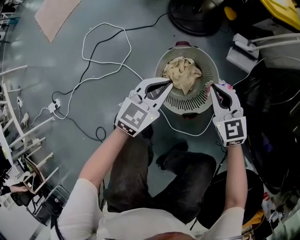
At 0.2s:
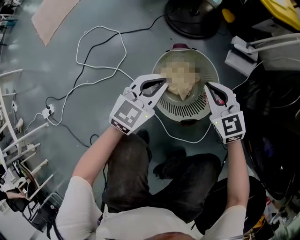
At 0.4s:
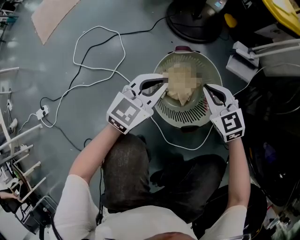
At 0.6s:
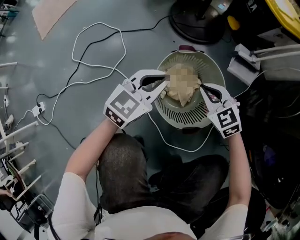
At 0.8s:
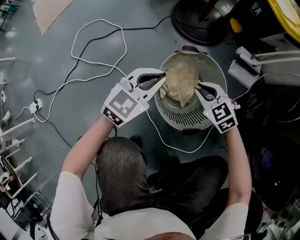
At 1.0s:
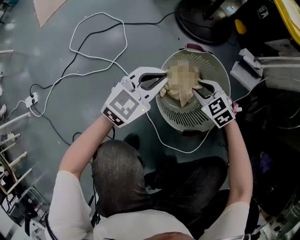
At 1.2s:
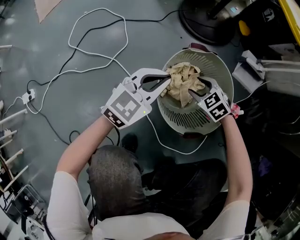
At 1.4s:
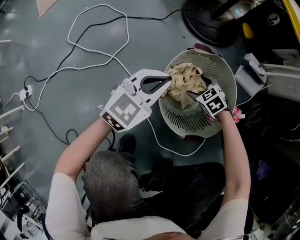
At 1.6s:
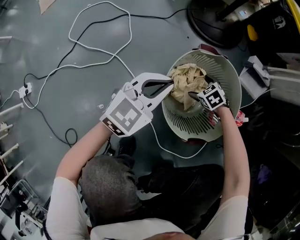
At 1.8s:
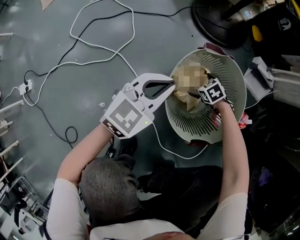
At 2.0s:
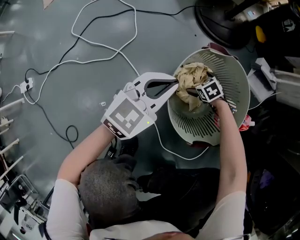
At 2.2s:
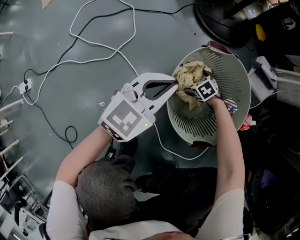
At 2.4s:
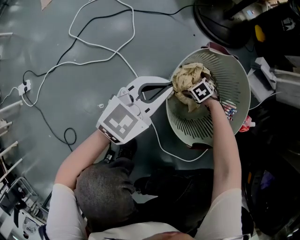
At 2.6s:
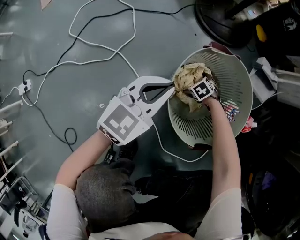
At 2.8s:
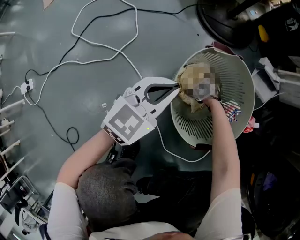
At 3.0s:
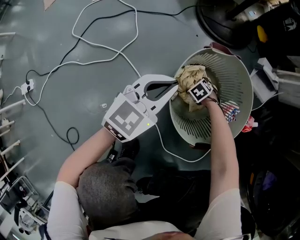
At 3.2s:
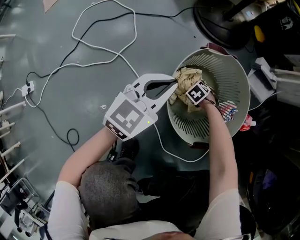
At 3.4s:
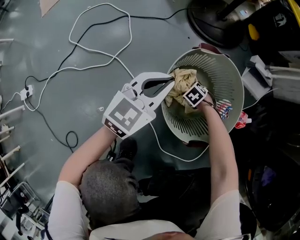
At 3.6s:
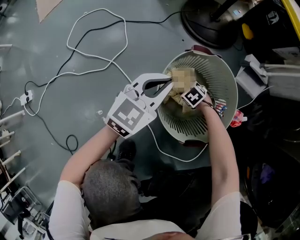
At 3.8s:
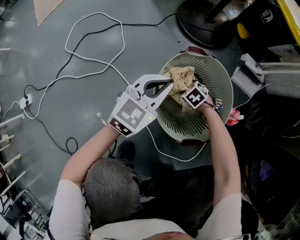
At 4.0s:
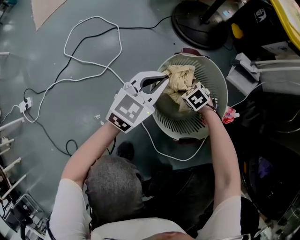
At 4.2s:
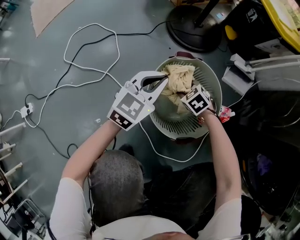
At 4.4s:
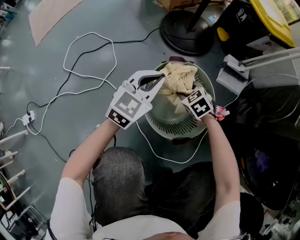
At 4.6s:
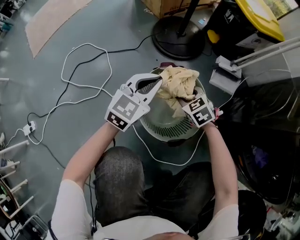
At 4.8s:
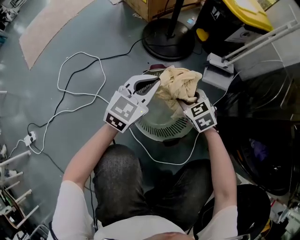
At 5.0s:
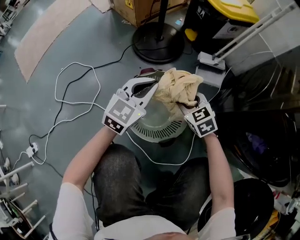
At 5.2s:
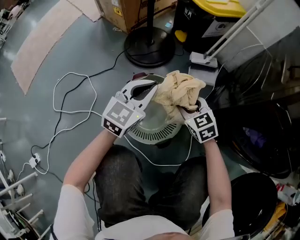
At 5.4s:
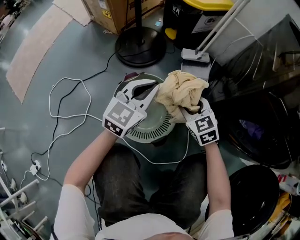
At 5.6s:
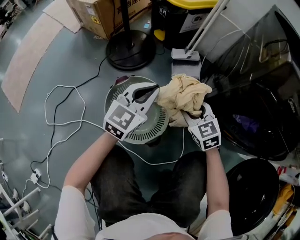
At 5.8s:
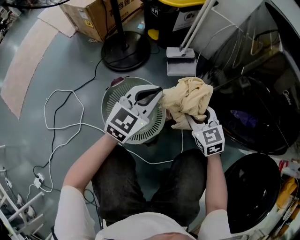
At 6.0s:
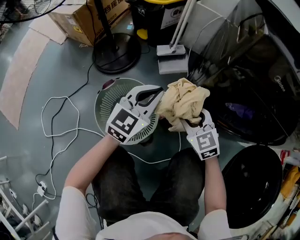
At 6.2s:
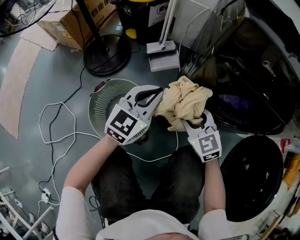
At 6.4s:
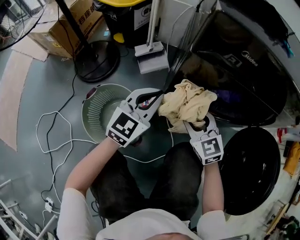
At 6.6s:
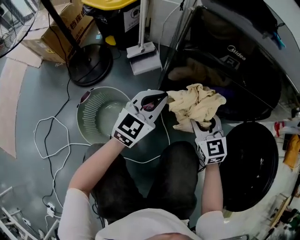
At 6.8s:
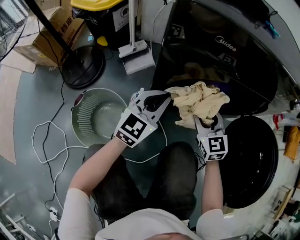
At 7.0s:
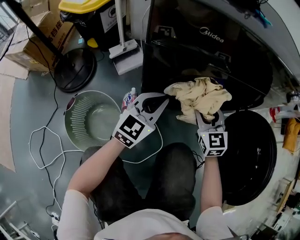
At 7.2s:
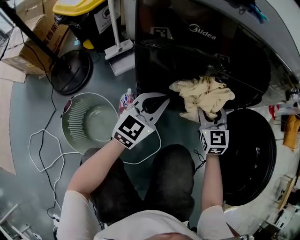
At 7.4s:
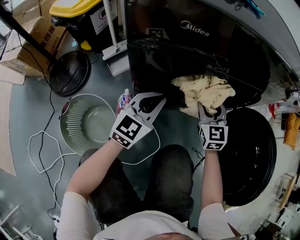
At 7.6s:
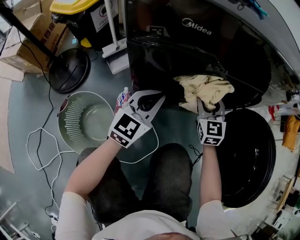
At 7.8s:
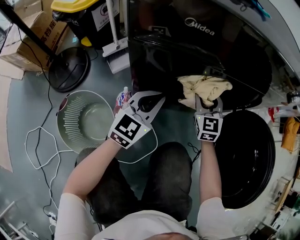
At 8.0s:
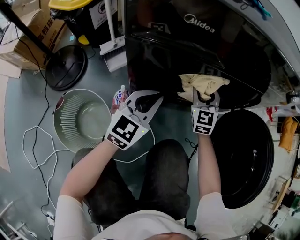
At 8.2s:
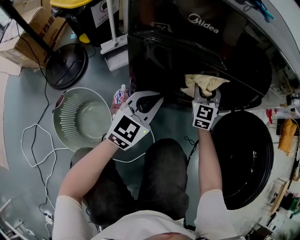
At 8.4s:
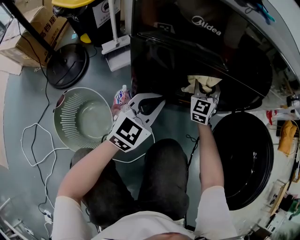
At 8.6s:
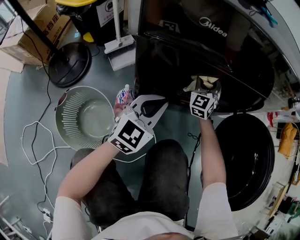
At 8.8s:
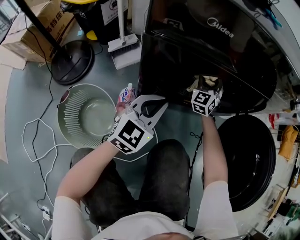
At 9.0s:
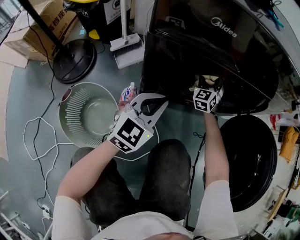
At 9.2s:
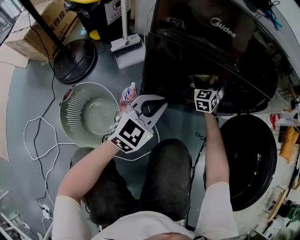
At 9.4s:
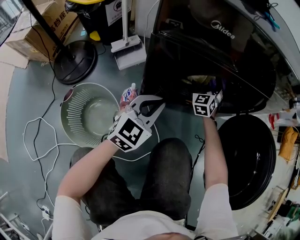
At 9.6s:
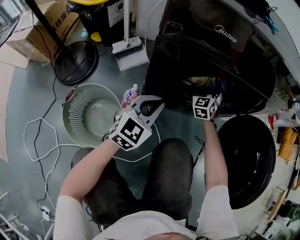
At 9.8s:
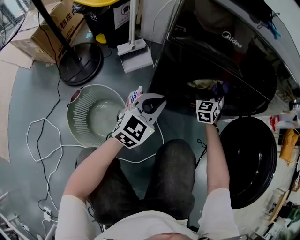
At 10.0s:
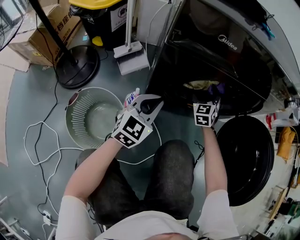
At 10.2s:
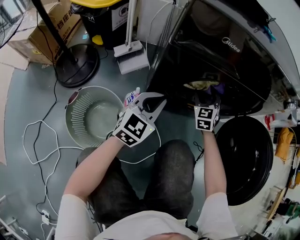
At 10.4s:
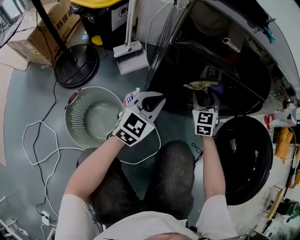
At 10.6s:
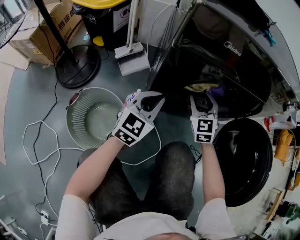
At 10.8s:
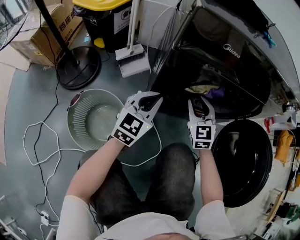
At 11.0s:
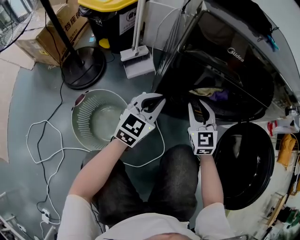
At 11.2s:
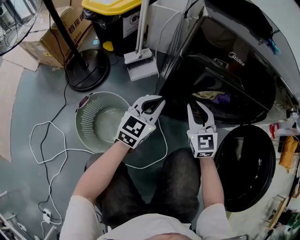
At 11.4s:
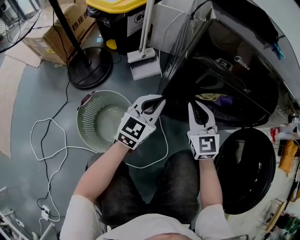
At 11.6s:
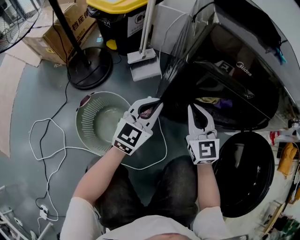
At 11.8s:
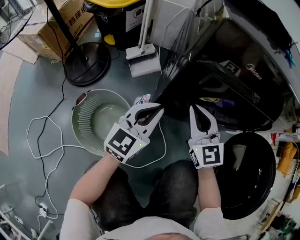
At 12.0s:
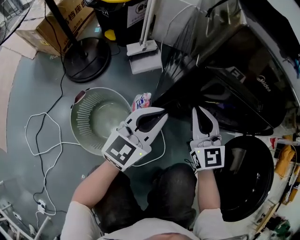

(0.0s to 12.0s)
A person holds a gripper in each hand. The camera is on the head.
0.0s - 1.6s: The left gripper goes roughly 15 cm downward and to the left, while the right gripper goes some 40 cm downward, angles its fingers downward, by some 40 degrees, and opens.
1.6s - 3.0s: The right gripper heads downward, covering about 10 cm.
3.0s - 4.4s: The right gripper travels upward by approximately 25 cm, and swivels roughly 20 degrees, while the left gripper moves upward, roughly 10 cm.
4.4s - 6.0s: The left gripper moves some 30 cm, and rotates about 30 degrees; the right gripper shifts by some 35 cm, and turns by approximately 50 degrees.
6.0s - 7.6s: The right gripper changes place by roughly 30 cm, and rotates roughly 40 degrees. The left gripper shifts by some 25 cm, and changes its angle by some 20 degrees.
7.6s - 9.0s: The right gripper moves forward and downward, some 15 cm, and changes its angle by roughly 20 degrees.
9.0s - 10.4s: The right gripper moves backward and upward, roughly 15 cm, and opens, then closes once more.
10.4s - 12.0s: The left gripper changes place by some 5 cm; the right gripper goes some 15 cm to the left, upward and backward, rotates about 30 degrees, and closes up.

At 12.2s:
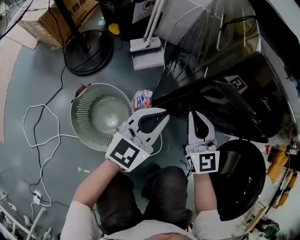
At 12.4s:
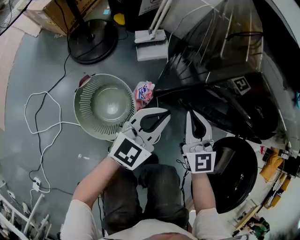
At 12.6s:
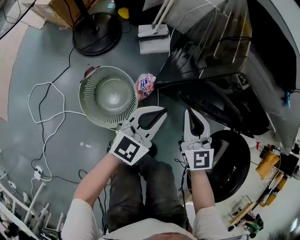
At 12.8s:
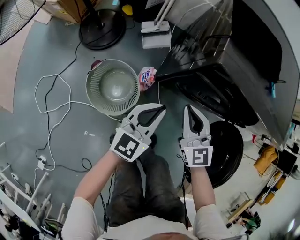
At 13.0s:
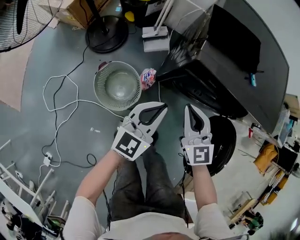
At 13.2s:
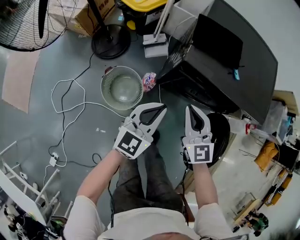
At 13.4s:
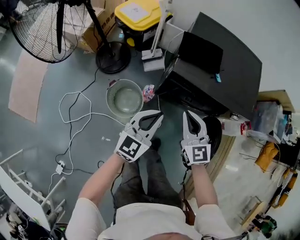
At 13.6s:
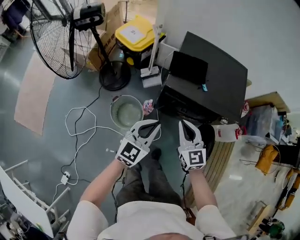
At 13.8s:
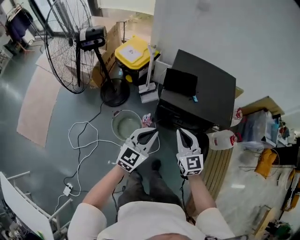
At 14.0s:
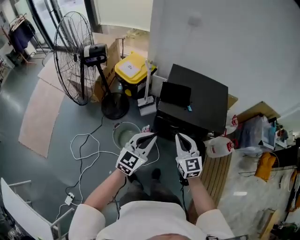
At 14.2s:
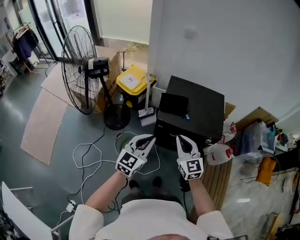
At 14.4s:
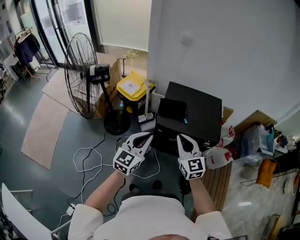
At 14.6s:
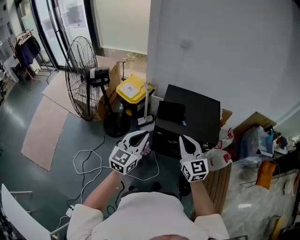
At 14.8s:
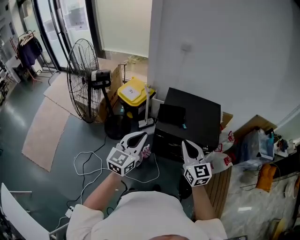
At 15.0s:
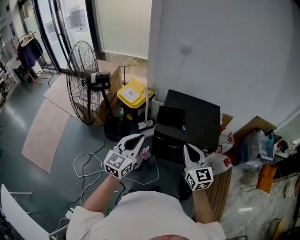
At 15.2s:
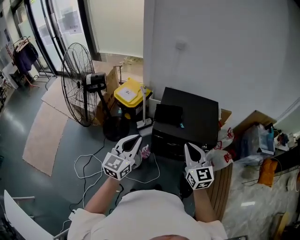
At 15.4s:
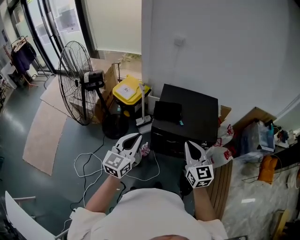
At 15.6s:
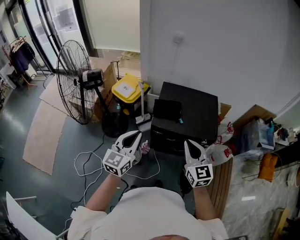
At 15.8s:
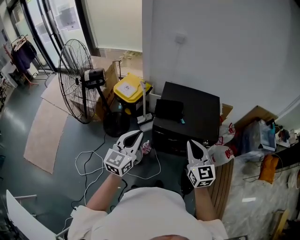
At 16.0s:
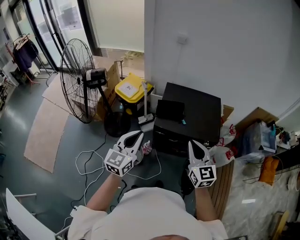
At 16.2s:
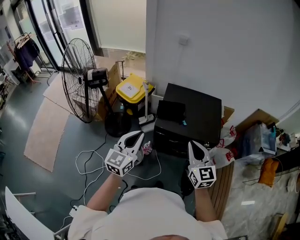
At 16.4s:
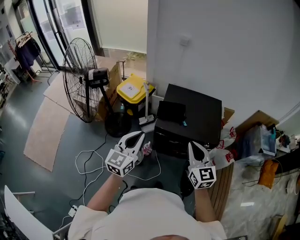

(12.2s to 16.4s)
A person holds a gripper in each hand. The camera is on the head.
12.2s - 13.6s: Both grippers move upward, approximately 50 cm.
13.6s - 15.0s: The two grippers go some 25 cm upward.
15.0s - 16.4s: The grippers stay close to where they were, moving slightly.

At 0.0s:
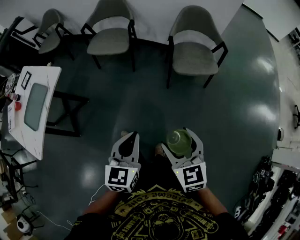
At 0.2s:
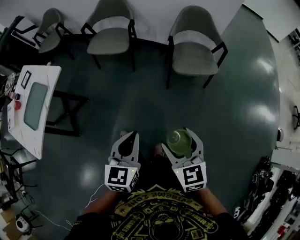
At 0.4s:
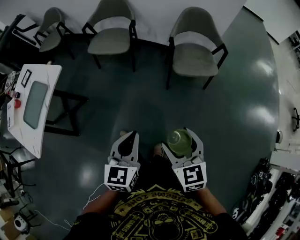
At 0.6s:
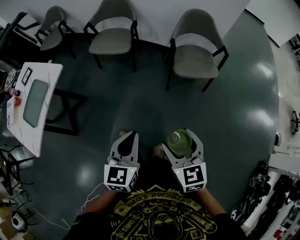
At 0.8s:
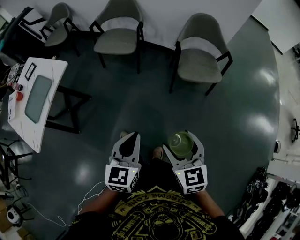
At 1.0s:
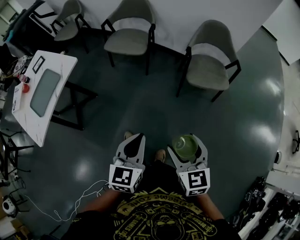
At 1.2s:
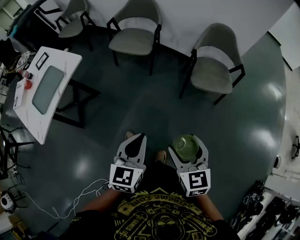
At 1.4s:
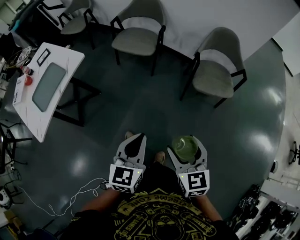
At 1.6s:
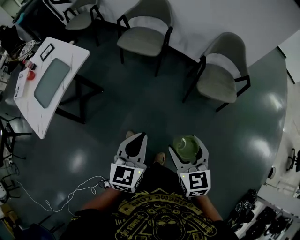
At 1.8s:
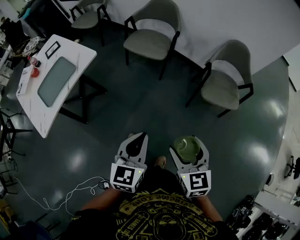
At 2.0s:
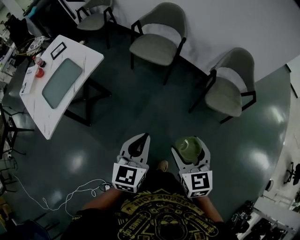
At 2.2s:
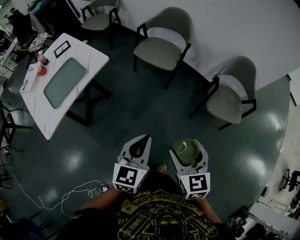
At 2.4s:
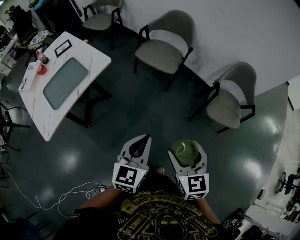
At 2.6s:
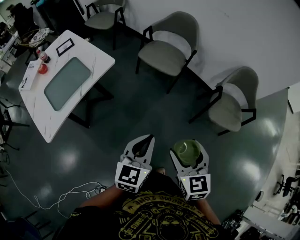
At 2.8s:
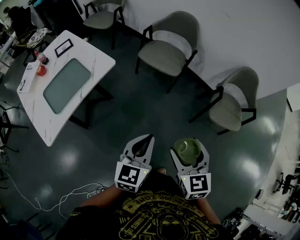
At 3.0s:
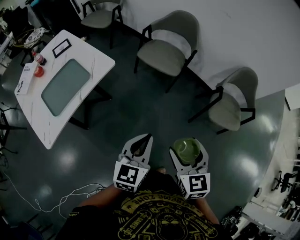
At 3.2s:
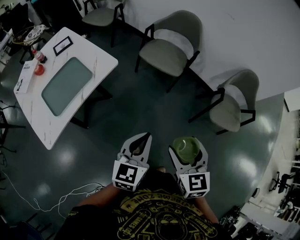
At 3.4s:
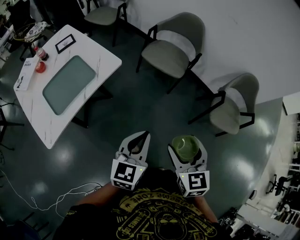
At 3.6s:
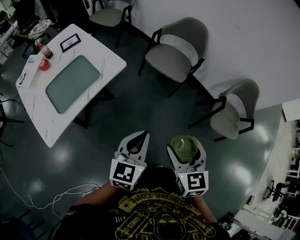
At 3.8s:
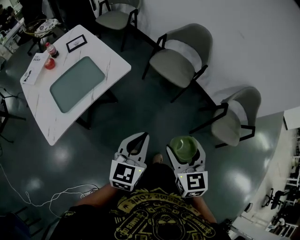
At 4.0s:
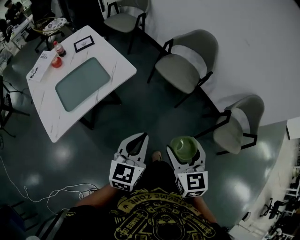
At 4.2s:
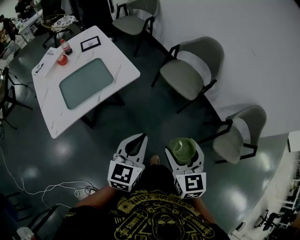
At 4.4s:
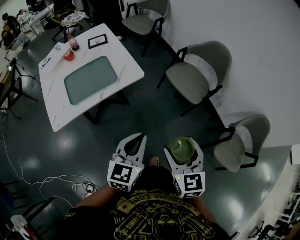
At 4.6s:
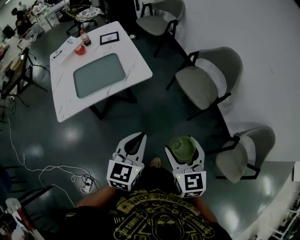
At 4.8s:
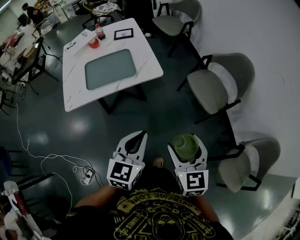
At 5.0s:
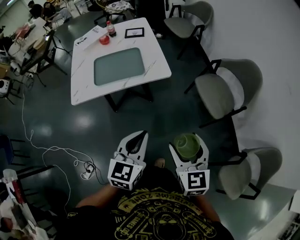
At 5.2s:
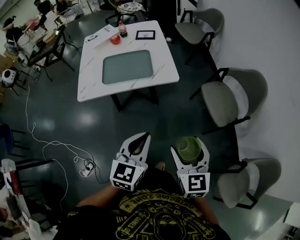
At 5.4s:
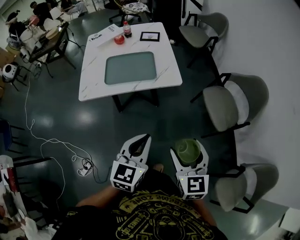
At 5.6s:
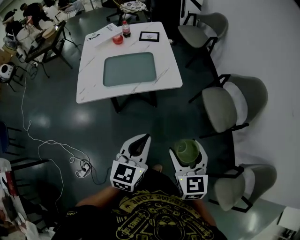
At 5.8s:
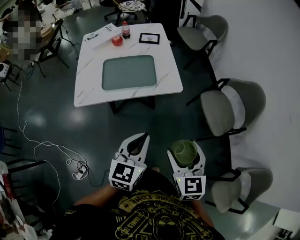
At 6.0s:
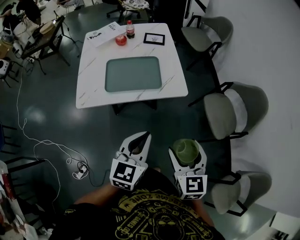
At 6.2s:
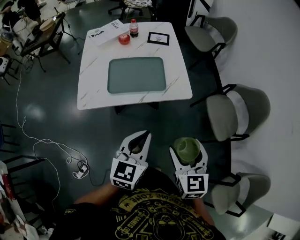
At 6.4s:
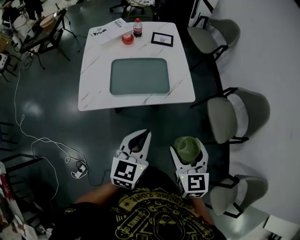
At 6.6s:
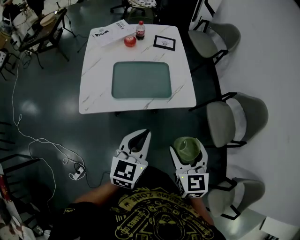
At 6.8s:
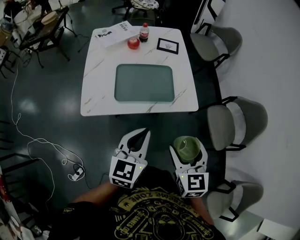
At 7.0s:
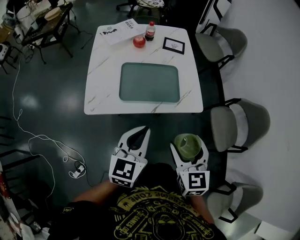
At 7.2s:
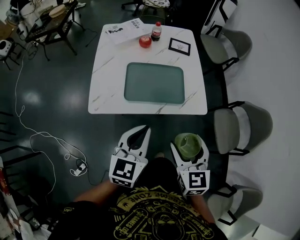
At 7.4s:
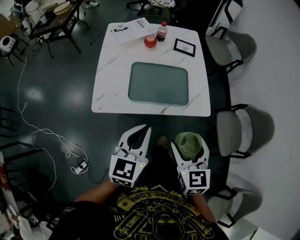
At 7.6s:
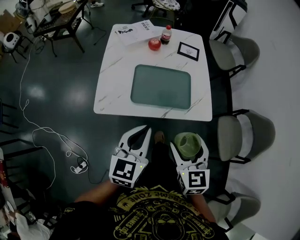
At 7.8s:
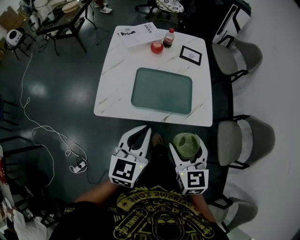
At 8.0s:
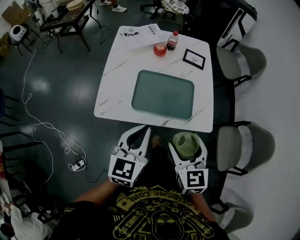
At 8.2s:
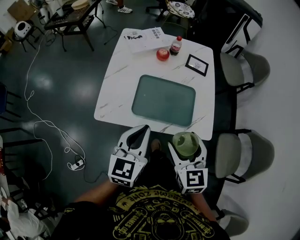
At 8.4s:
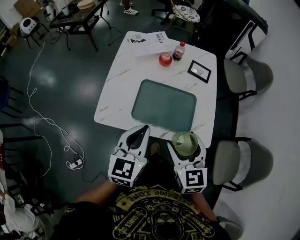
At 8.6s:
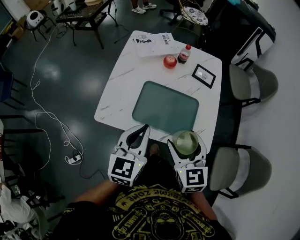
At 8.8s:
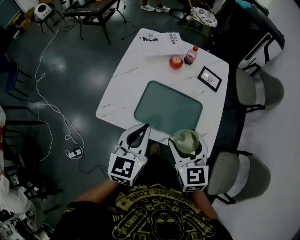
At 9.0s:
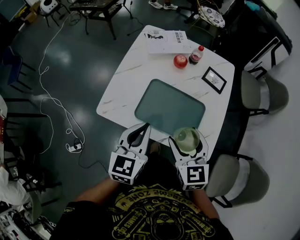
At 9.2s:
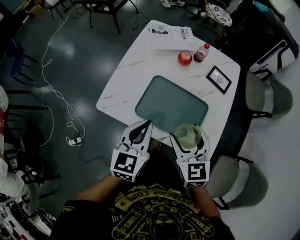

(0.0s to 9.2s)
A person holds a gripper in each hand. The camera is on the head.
0.0s - 1.6s: The right gripper goes approximately 10 cm forward and to the left, while the left gripper goes about 5 cm to the left.
1.6s - 3.0s: The grippers both shift to the left and forward by about 20 cm.
3.0s - 4.6s: The left gripper changes place by some 10 cm, and rotates about 30 degrees; the right gripper shifts by about 15 cm, and swivels roughly 30 degrees.
4.6s - 6.2s: Both grippers travel together to the left and forward, about 15 cm.
6.2s - 7.6s: The two grippers go about 15 cm to the left and forward.
7.6s - 9.2s: The right gripper moves some 20 cm, and rotates about 30 degrees. The left gripper changes place by roughly 15 cm, and turns by approximately 20 degrees.
